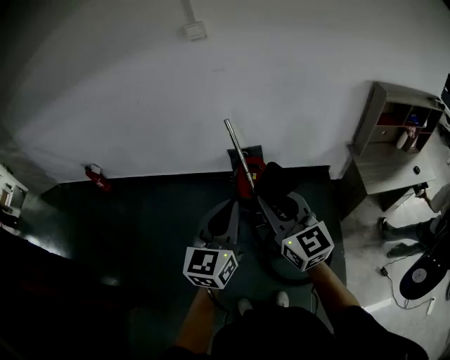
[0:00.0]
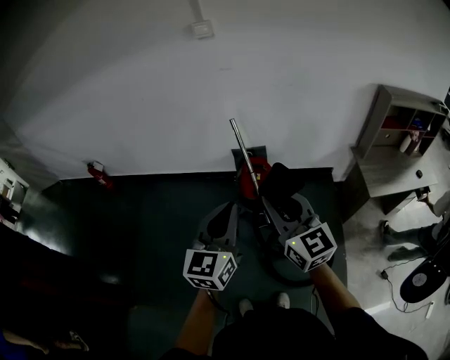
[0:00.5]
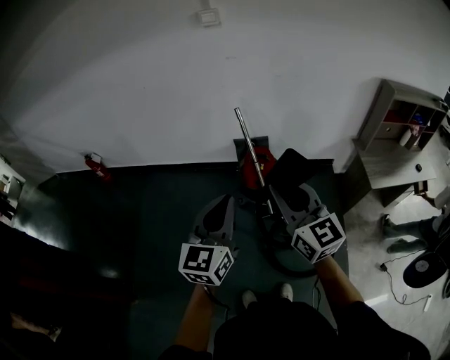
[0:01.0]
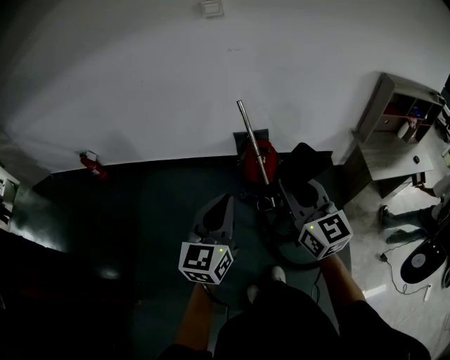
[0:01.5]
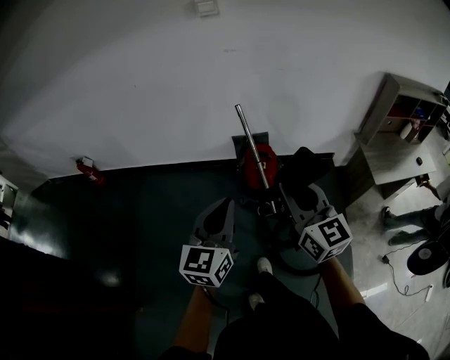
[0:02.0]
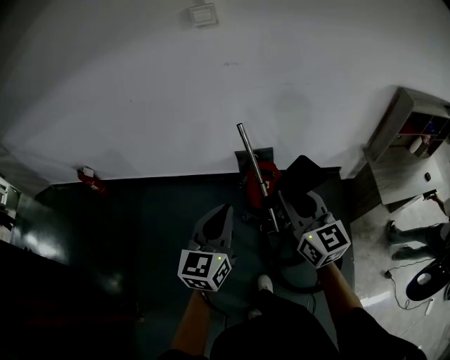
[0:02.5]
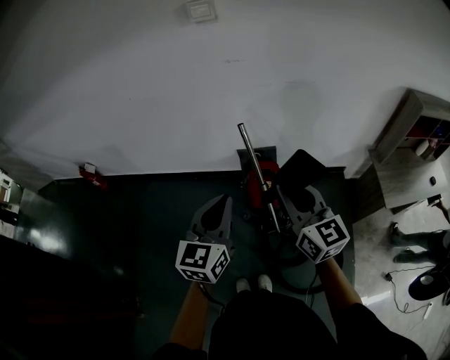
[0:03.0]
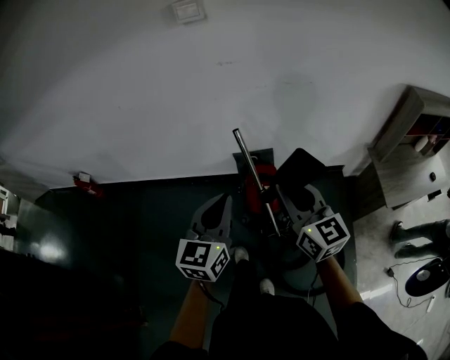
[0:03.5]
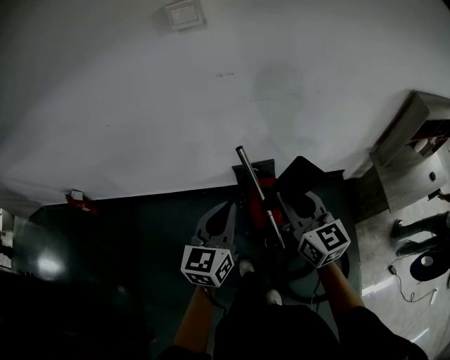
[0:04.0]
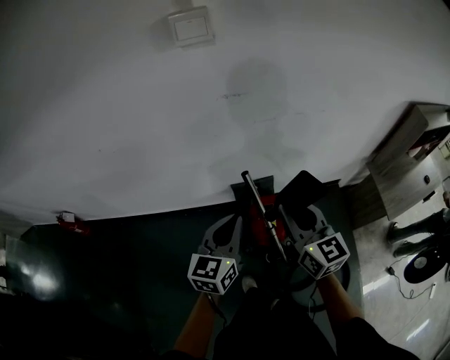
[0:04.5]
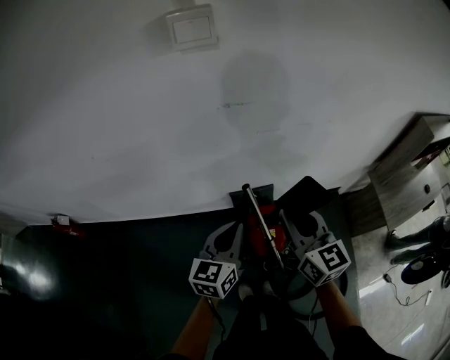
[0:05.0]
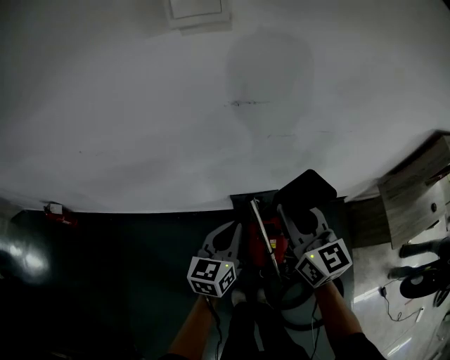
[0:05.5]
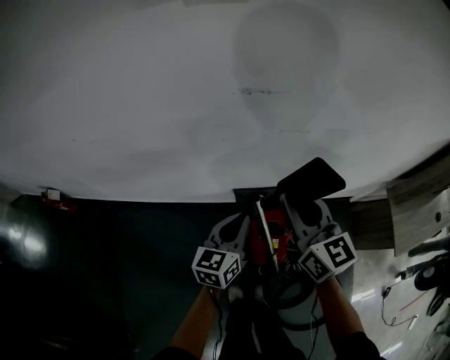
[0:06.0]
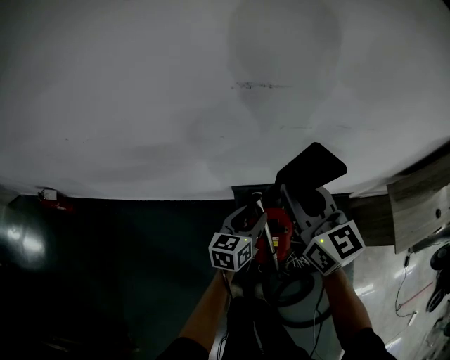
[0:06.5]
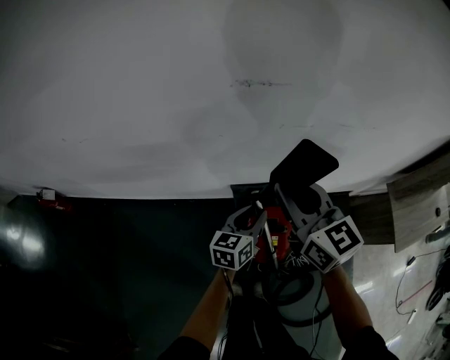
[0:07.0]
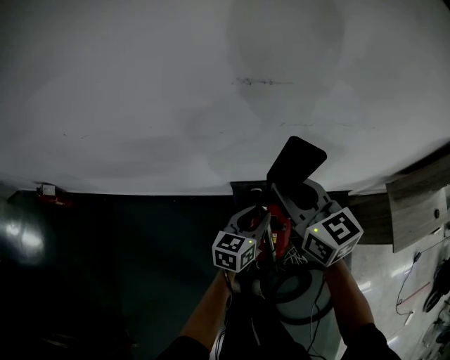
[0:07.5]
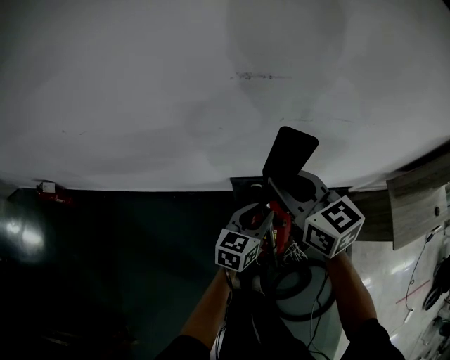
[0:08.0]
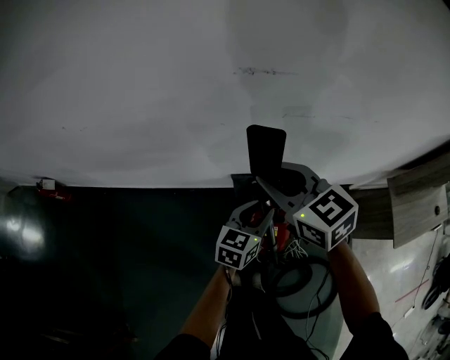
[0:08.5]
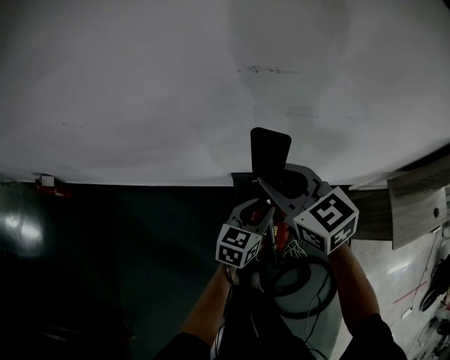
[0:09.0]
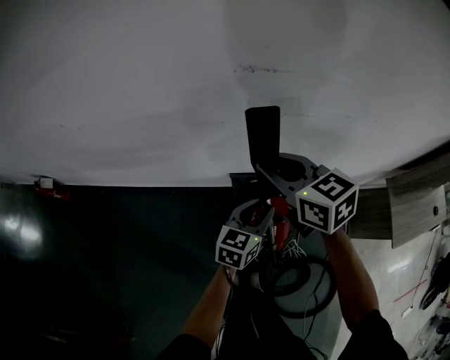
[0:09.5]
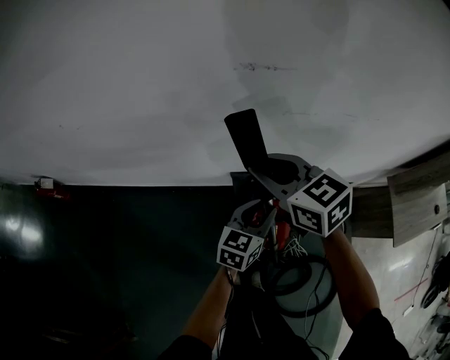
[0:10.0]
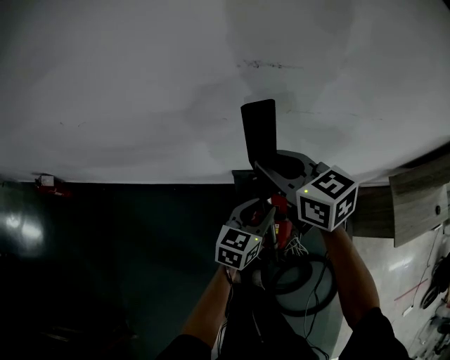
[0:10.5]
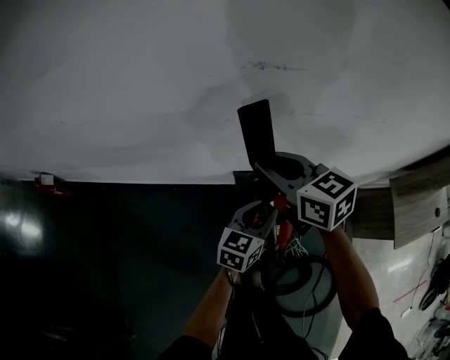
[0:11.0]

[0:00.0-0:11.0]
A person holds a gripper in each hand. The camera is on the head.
0:00.0 to 0:02.0: The left gripper moves to the left, downward and forward, about 15 cm; the right gripper moves forward and to the left, roughly 10 cm.
0:02.0 to 0:03.5: The grippers both shift forward by roughly 20 cm.
0:03.5 to 0:05.5: The right gripper shifts some 30 cm forward; the left gripper travels forward and downward by some 35 cm.
0:05.5 to 0:07.5: The left gripper goes approximately 15 cm downward, to the right and forward, and opens its fingers. The right gripper moves forward, about 5 cm.
0:07.5 to 0:09.0: The grippers move only a little.
0:09.0 to 0:11.0: The grippers make only small movements.

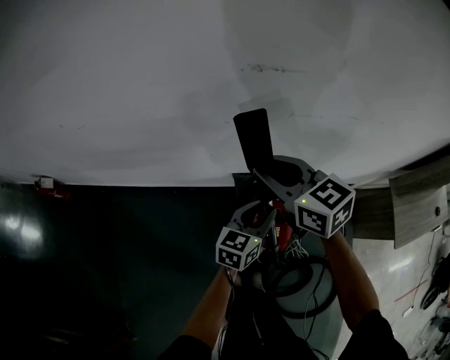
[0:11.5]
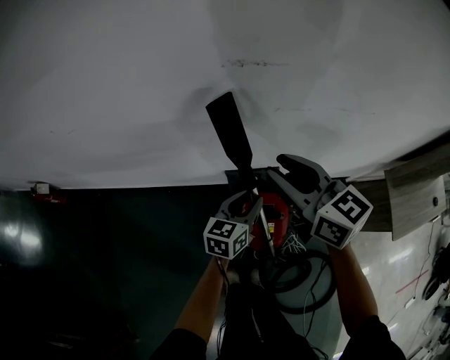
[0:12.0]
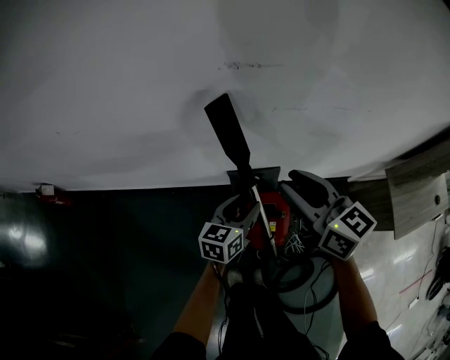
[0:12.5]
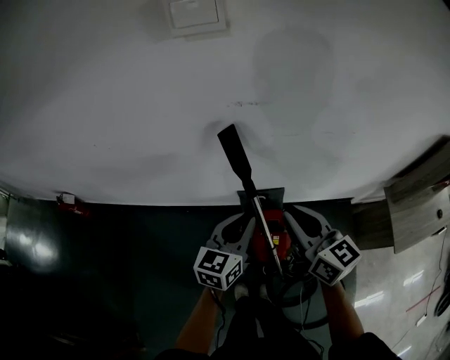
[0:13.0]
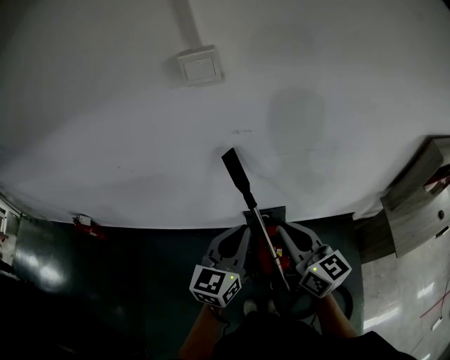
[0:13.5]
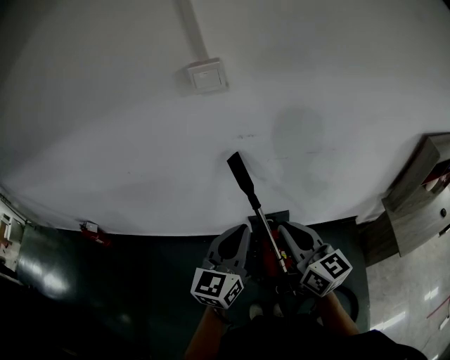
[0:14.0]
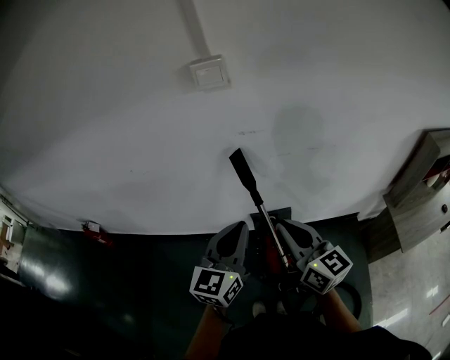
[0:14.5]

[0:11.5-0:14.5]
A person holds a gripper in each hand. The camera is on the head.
0:11.5 to 0:13.0: The right gripper moves backward, to the right and upward, roughly 20 cm, and changes its angle by some 20 degrees; the left gripper is displaced upward by about 15 cm.
0:13.0 to 0:14.5: The right gripper is displaced backward and upward by about 15 cm, while the left gripper goes about 20 cm upward and backward.

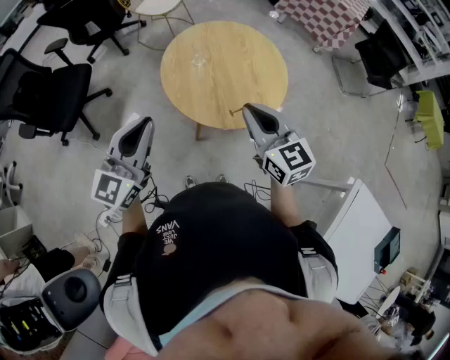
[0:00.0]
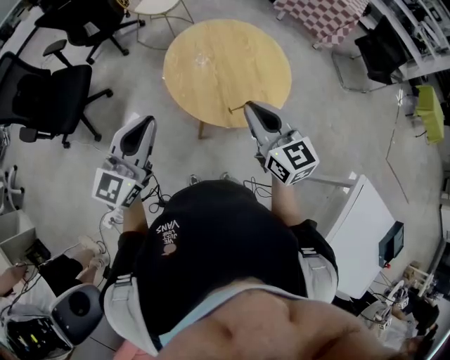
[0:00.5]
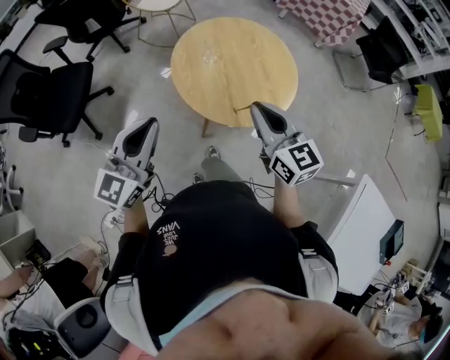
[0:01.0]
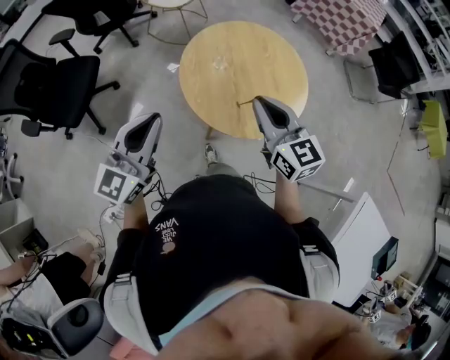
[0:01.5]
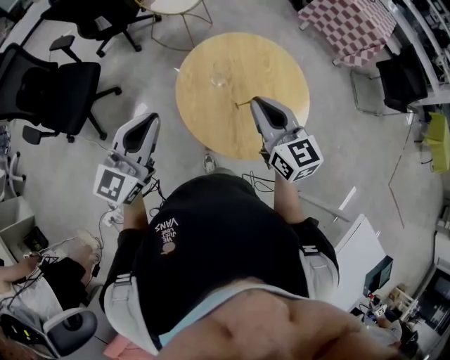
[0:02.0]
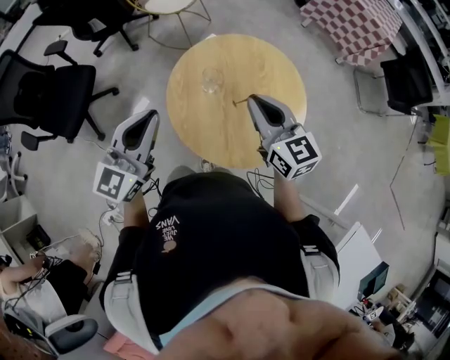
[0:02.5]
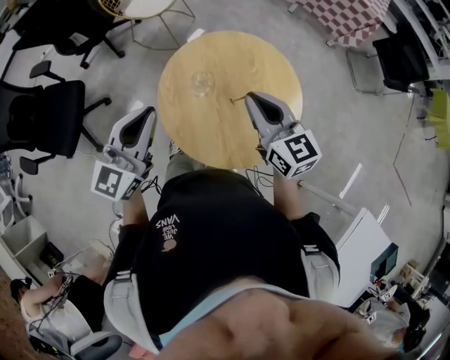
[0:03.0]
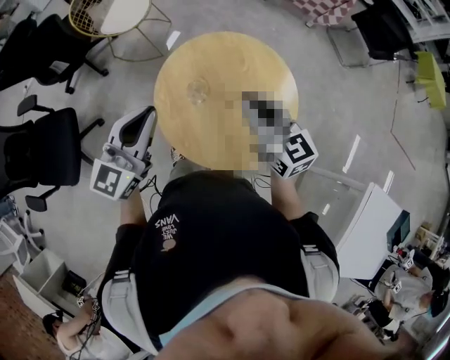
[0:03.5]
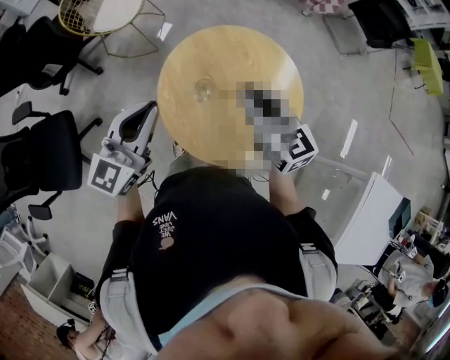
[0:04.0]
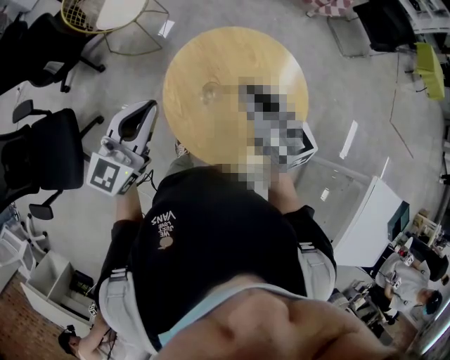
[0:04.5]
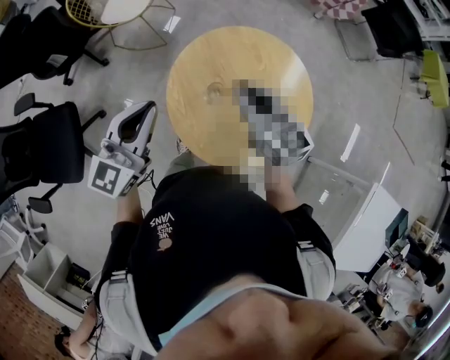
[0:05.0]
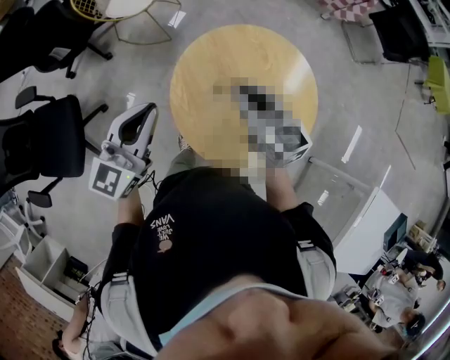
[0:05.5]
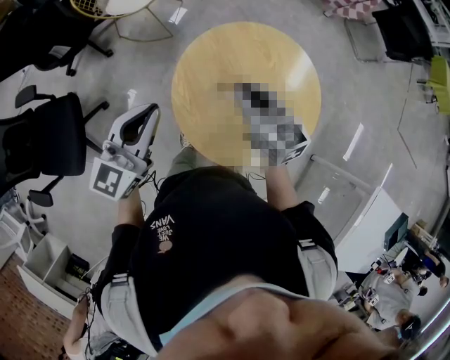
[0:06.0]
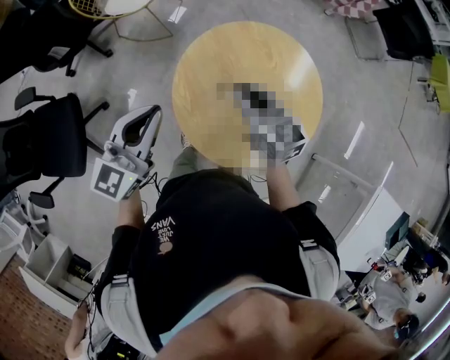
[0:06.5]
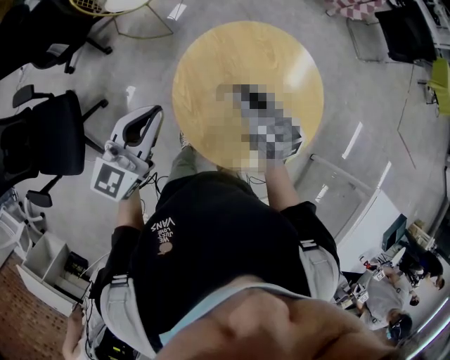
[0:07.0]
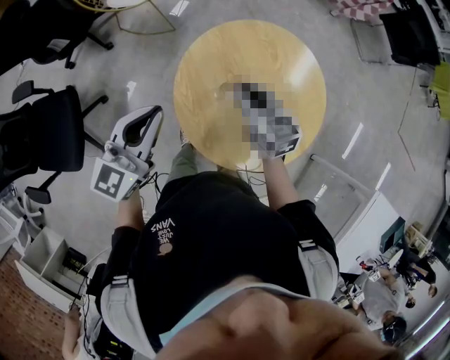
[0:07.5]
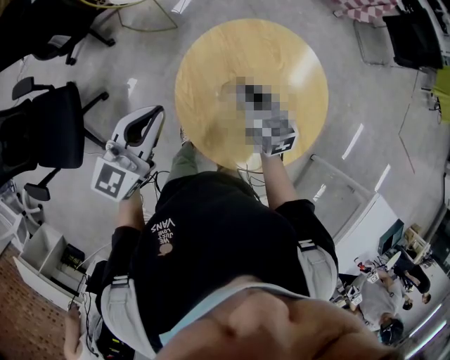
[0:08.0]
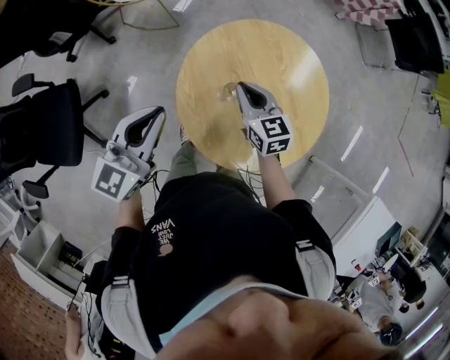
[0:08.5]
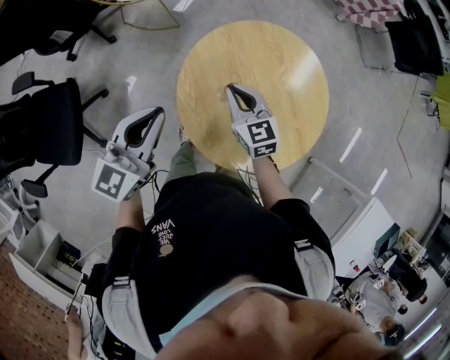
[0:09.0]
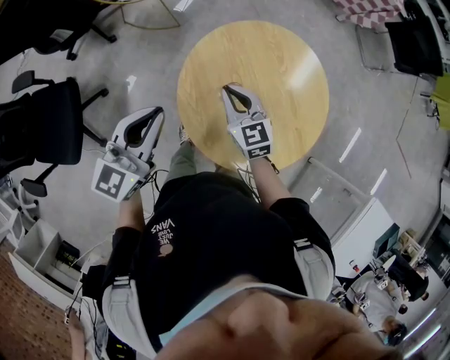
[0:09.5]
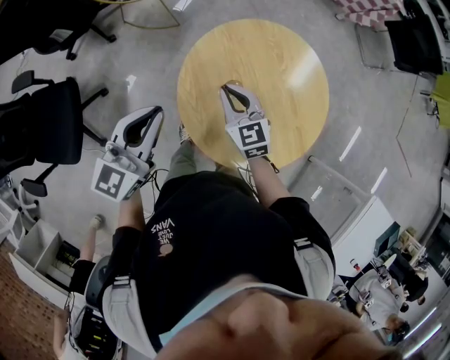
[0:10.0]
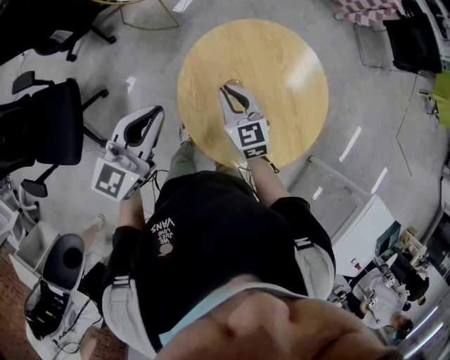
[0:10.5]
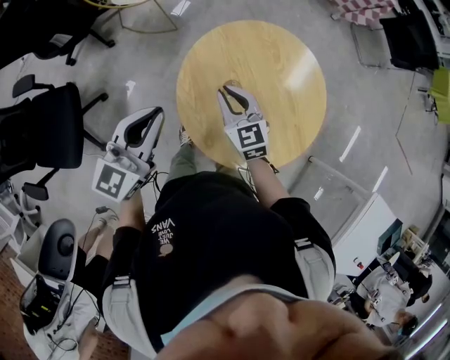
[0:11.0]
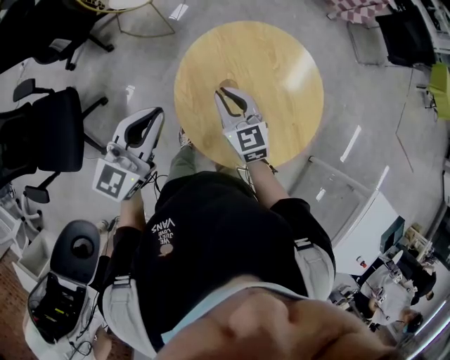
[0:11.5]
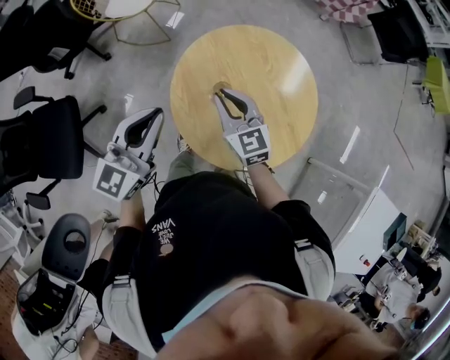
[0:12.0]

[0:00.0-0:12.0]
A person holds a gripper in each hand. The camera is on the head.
0:00.0 to 0:02.0: The grippers both shift forward by roughly 15 cm.
0:02.0 to 0:04.0: The right gripper goes some 15 cm forward. The left gripper shifts about 20 cm forward, and rotates roughly 20 degrees.
0:04.0 to 0:06.0: The left gripper shifts by roughly 5 cm, while the right gripper goes some 10 cm downward and to the left.
0:06.0 to 0:08.0: The right gripper moves downward, about 10 cm.
0:08.0 to 0:10.0: The right gripper travels to the left by some 5 cm.
0:10.0 to 0:12.0: The right gripper shifts about 5 cm upward.

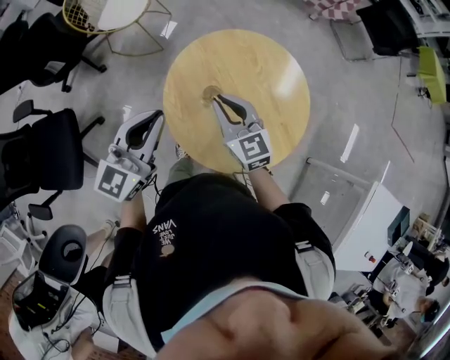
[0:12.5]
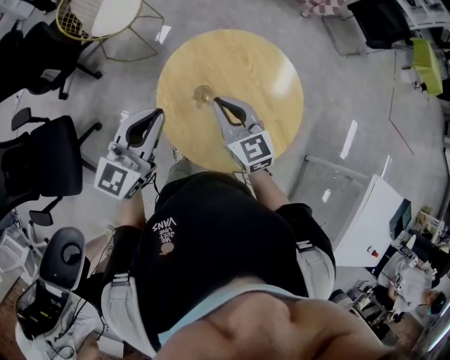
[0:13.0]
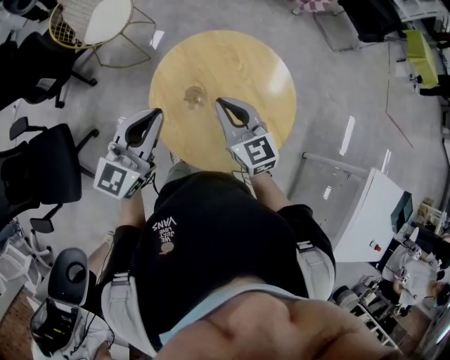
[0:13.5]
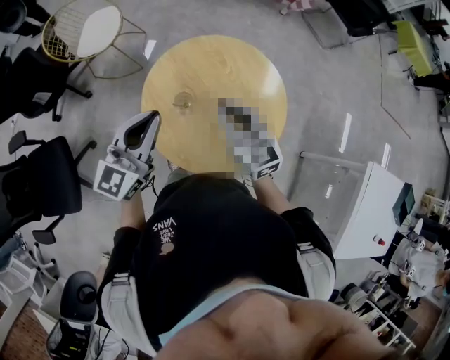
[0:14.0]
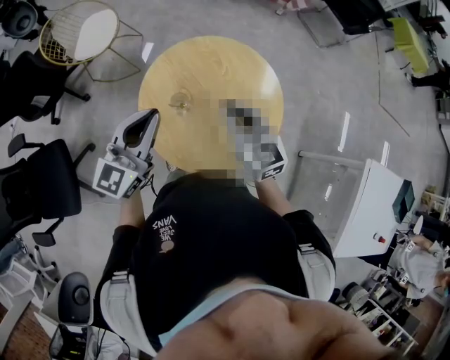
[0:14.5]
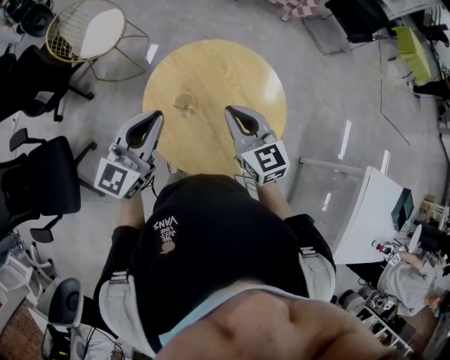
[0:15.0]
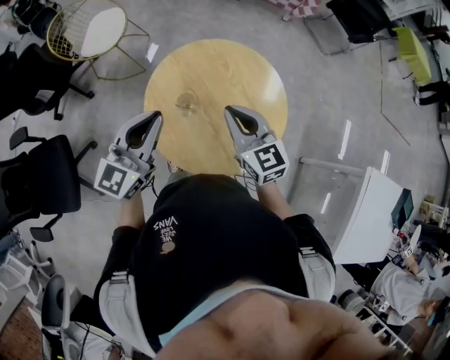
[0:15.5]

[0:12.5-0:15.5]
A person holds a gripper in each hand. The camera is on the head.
0:12.5 to 0:14.0: The left gripper is displaced to the right by about 5 cm. The right gripper moves to the right and upward, approximately 10 cm.
0:14.0 to 0:15.5: The grippers move only a little.
